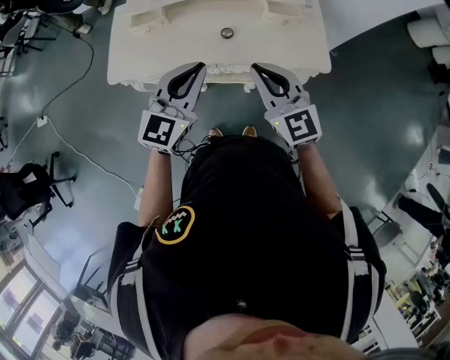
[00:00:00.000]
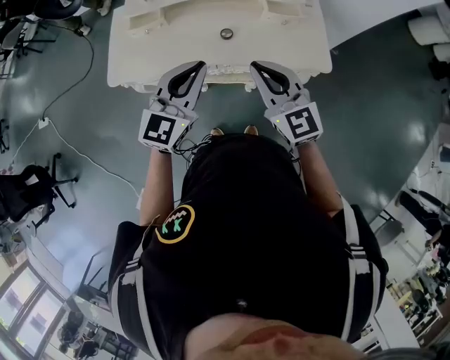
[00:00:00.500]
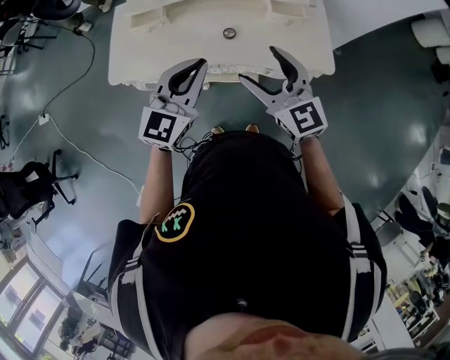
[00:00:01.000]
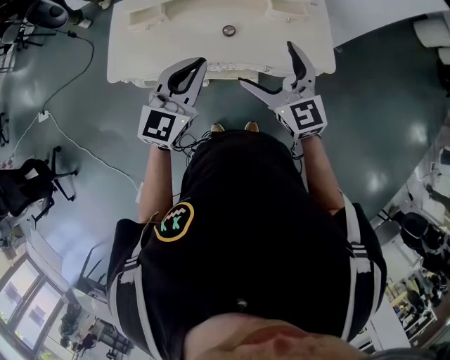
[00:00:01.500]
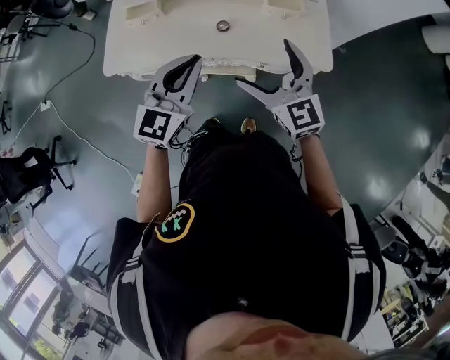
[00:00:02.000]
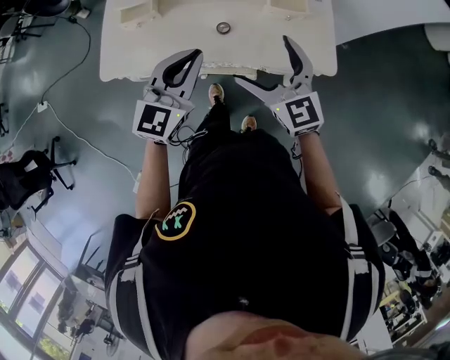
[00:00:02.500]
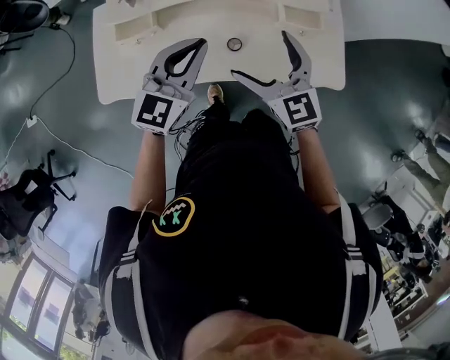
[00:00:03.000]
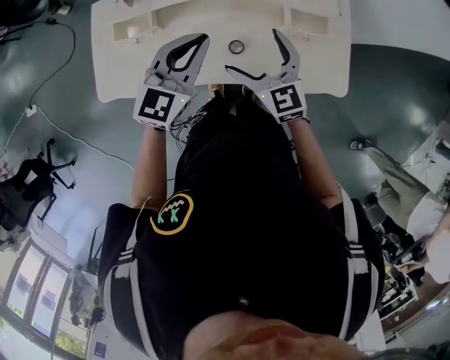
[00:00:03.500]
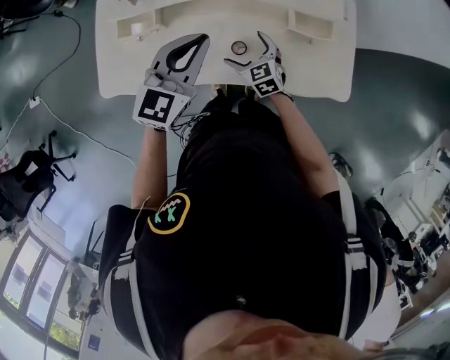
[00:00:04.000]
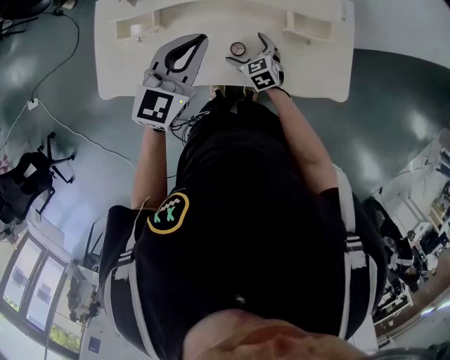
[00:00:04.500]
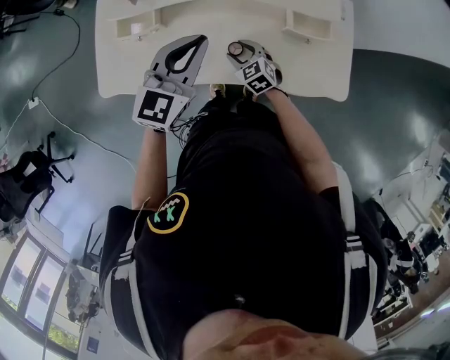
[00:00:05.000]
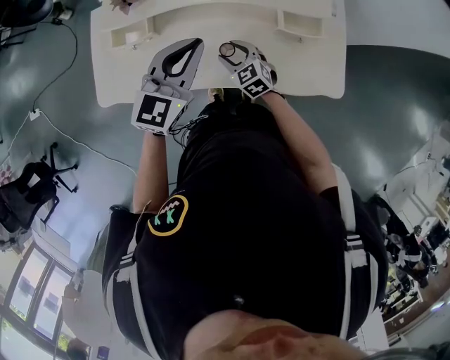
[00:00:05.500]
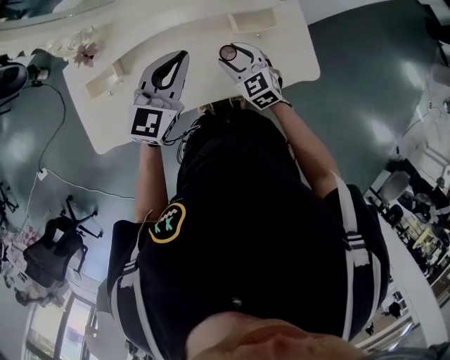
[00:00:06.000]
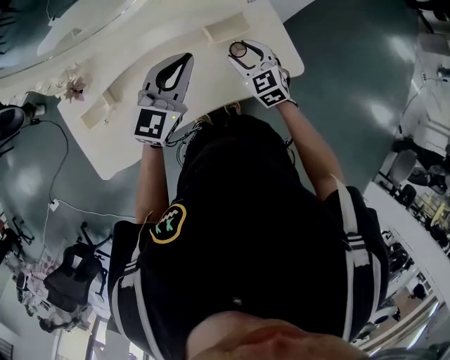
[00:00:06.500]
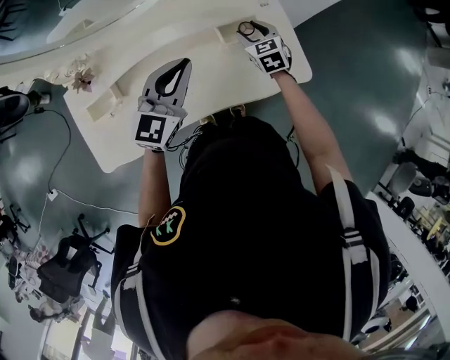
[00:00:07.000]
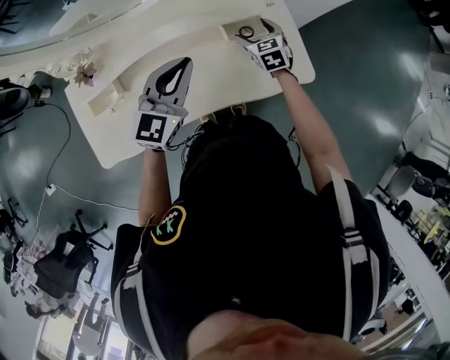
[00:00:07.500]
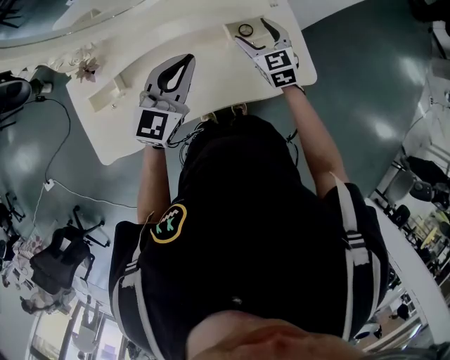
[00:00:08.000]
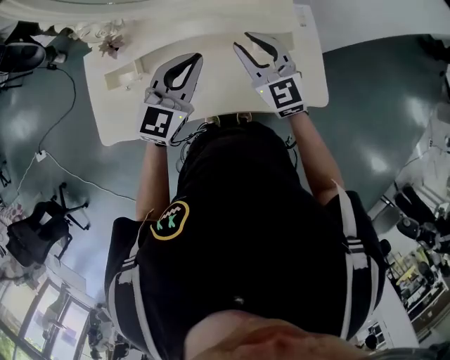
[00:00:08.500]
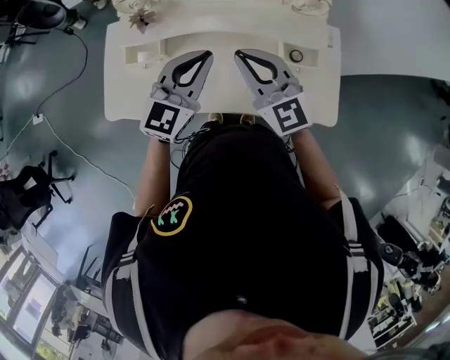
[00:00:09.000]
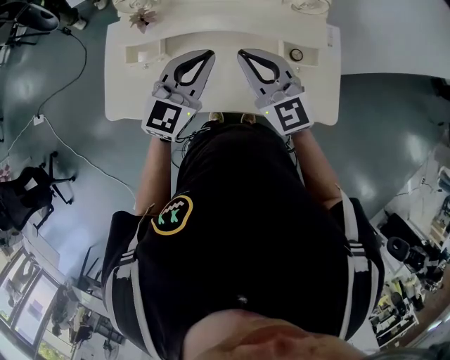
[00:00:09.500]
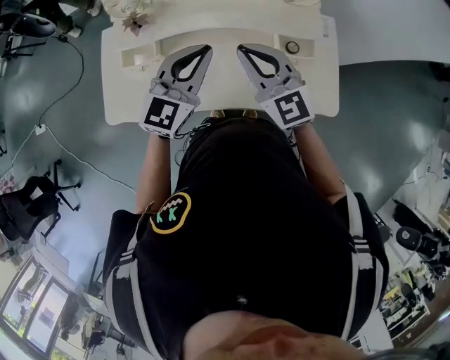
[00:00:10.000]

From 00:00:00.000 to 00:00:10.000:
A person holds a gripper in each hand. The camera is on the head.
From 00:00:00.000 to 00:00:02.000: The right gripper moves to the right, roughly 5 cm, and opens up. The left gripper moves approximately 5 cm.
From 00:00:02.000 to 00:00:04.000: The left gripper goes some 25 cm forward; the right gripper travels downward and forward by some 40 cm, and turns by some 30 degrees.
From 00:00:04.000 to 00:00:06.000: The left gripper travels to the right by approximately 5 cm. The right gripper shifts some 15 cm to the right and upward, and closes.
From 00:00:06.000 to 00:00:08.000: The right gripper moves forward, to the right and upward, some 15 cm.
From 00:00:08.000 to 00:00:10.000: The right gripper shifts approximately 25 cm to the left, upward and backward, rotates some 40 degrees, and closes its fingers; the left gripper goes some 10 cm to the left.

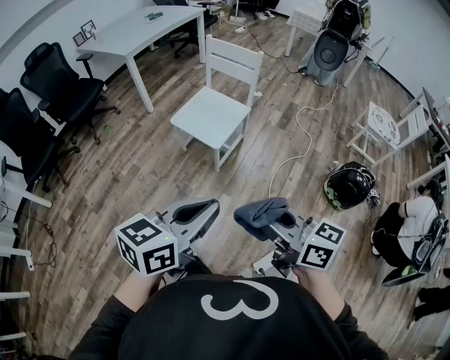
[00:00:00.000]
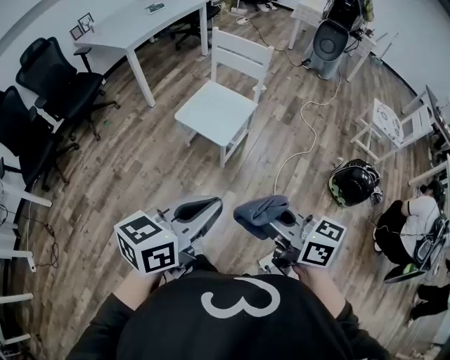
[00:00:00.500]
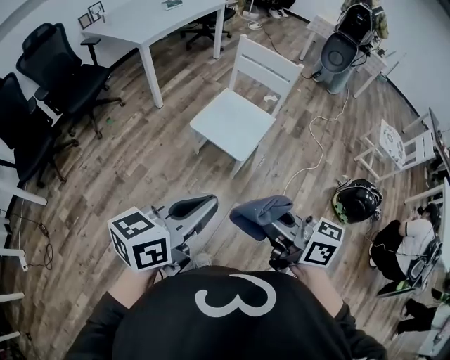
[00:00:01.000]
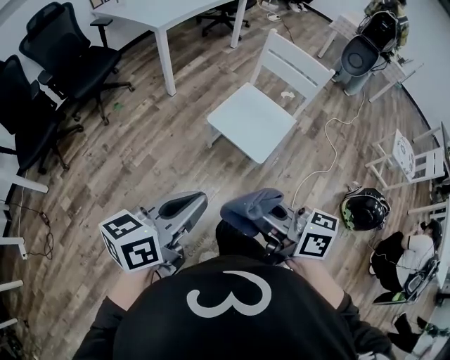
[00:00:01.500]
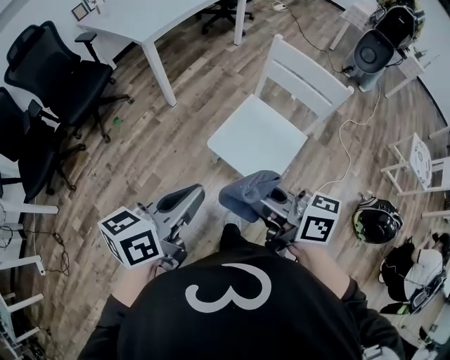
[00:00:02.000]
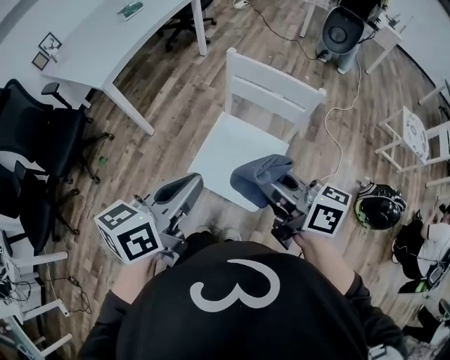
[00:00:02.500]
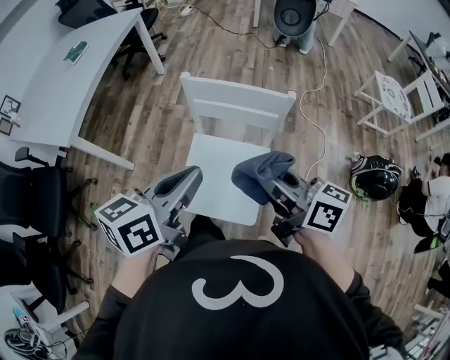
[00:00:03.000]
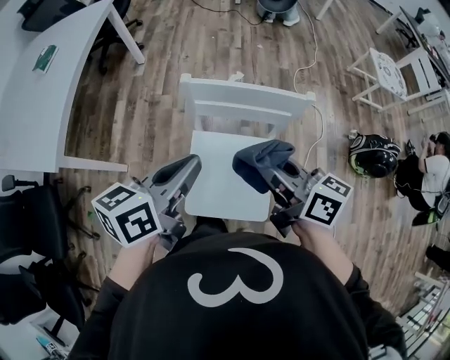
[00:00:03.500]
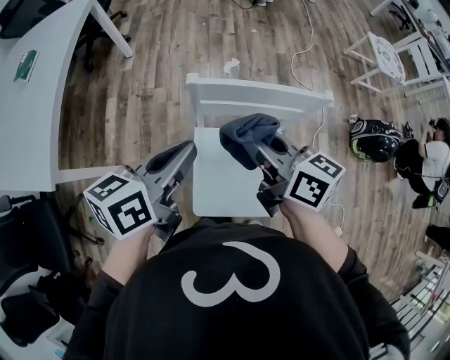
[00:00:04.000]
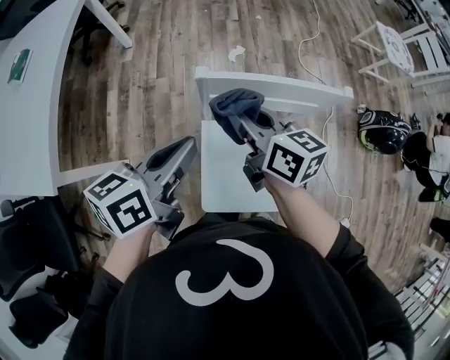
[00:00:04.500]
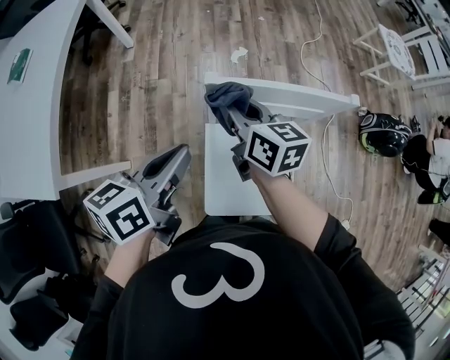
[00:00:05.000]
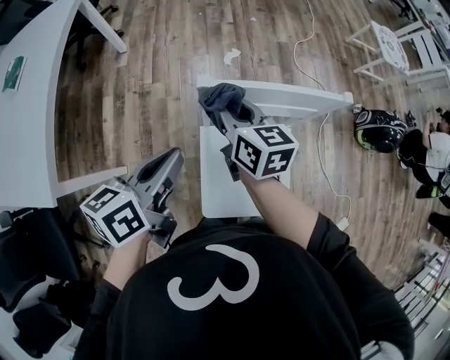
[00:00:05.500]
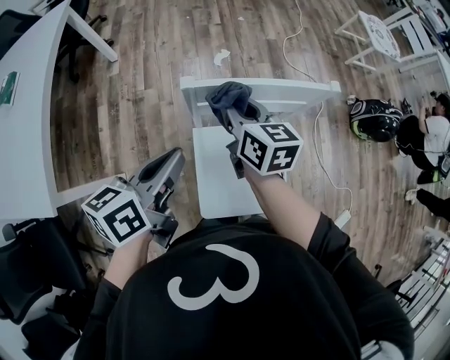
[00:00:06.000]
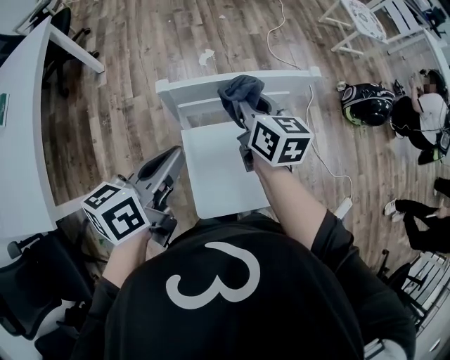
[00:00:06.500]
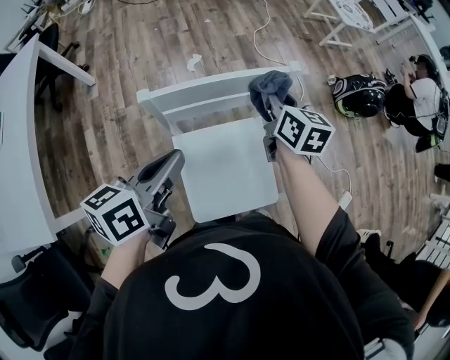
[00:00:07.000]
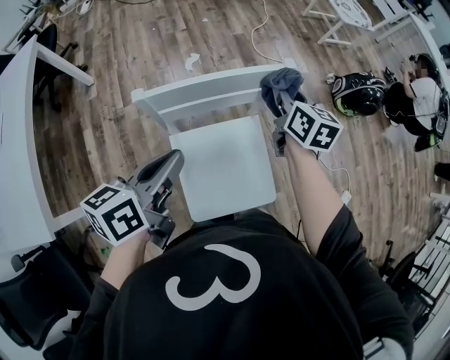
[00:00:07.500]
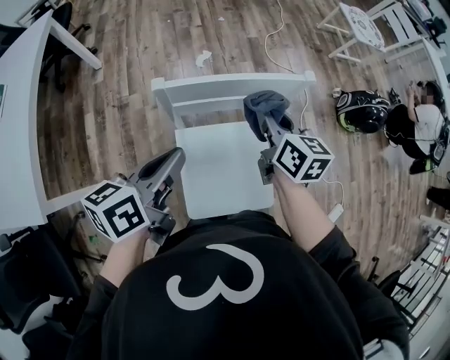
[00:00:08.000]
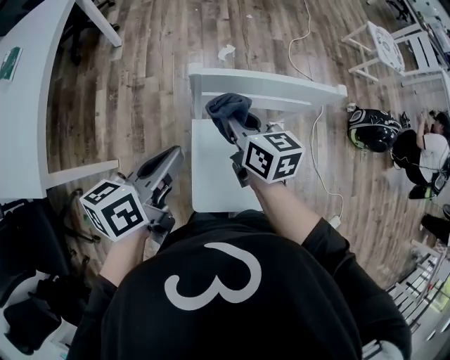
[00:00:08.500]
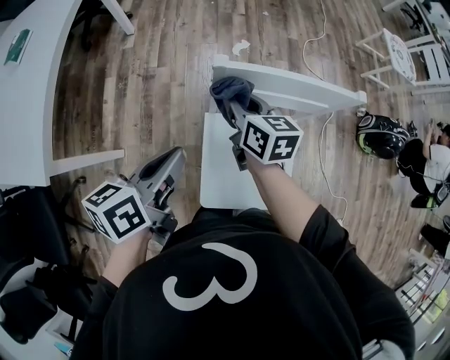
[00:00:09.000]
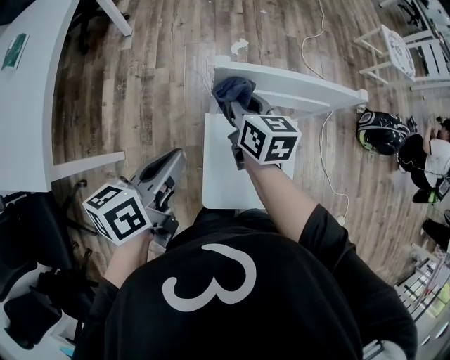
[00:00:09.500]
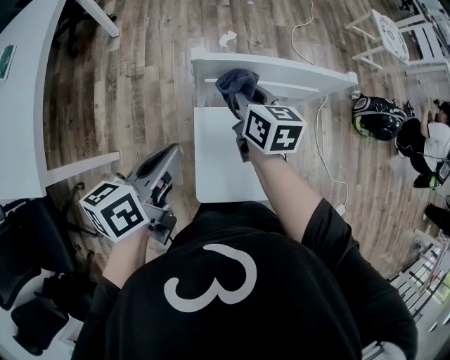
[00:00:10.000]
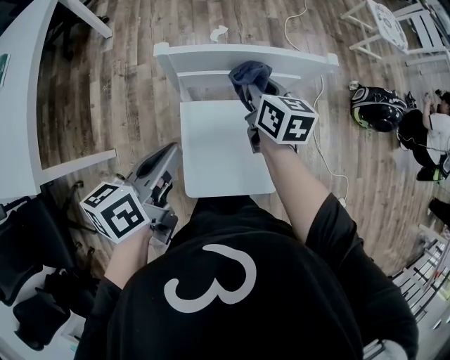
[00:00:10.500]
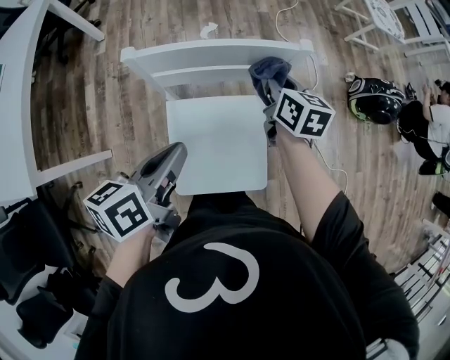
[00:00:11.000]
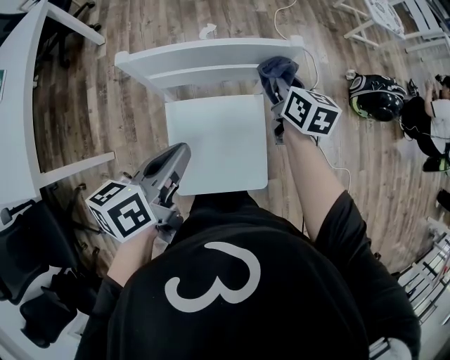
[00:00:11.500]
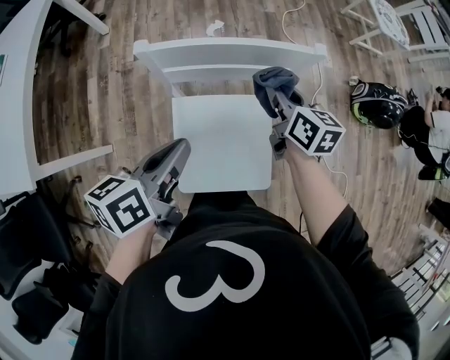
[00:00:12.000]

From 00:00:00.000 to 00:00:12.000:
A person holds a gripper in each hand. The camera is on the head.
From 00:00:00.000 to 00:00:02.000: The two grippers travel together, forward and to the left, roughly 50 cm.
From 00:00:02.000 to 00:00:04.000: Both grippers are carried approximately 50 cm. The left gripper swivels roughly 40 degrees, while the right gripper rotates roughly 50 degrees.
From 00:00:04.000 to 00:00:06.000: The left gripper shifts by roughly 5 cm. Meanwhile the right gripper is displaced forward and downward by about 15 cm, and swivels approximately 20 degrees.
From 00:00:06.000 to 00:00:08.000: The left gripper goes some 5 cm to the right. The right gripper goes about 15 cm to the right.
From 00:00:08.000 to 00:00:10.000: The left gripper shifts about 10 cm to the left. The right gripper travels to the left by about 15 cm.
From 00:00:10.000 to 00:00:12.000: The left gripper is displaced to the right by roughly 10 cm. The right gripper moves to the right, roughly 20 cm.

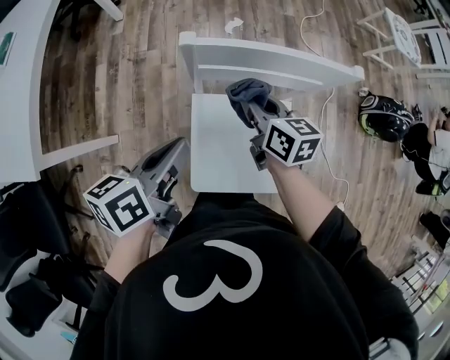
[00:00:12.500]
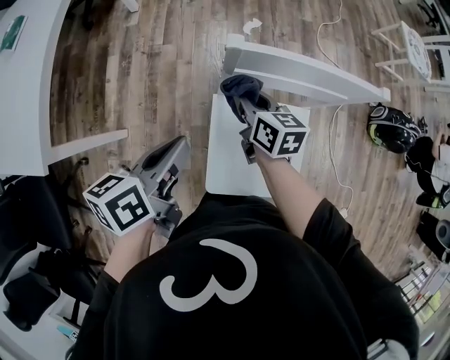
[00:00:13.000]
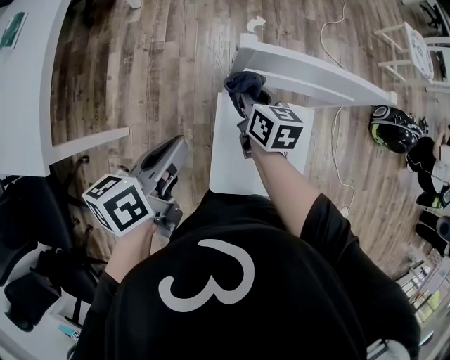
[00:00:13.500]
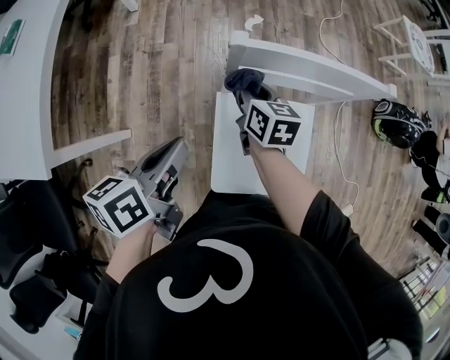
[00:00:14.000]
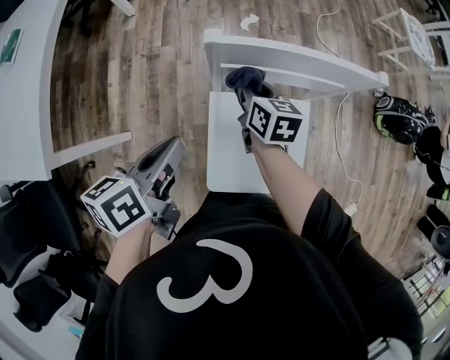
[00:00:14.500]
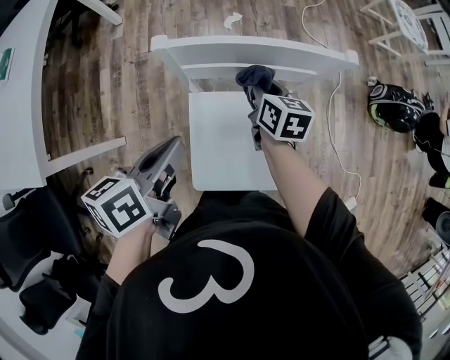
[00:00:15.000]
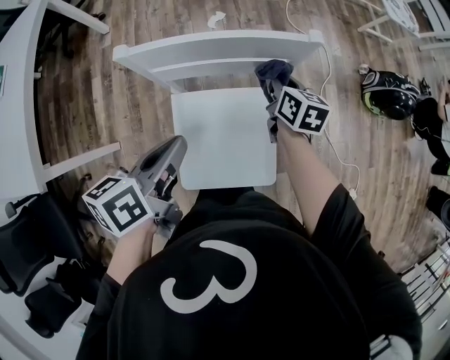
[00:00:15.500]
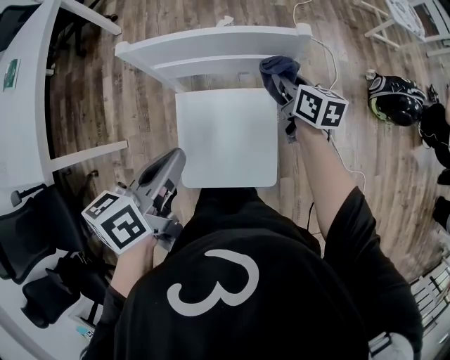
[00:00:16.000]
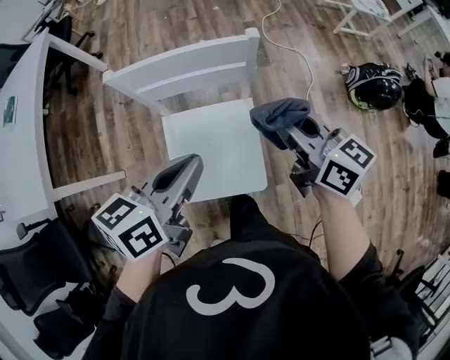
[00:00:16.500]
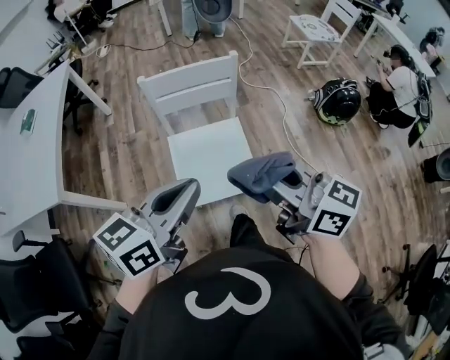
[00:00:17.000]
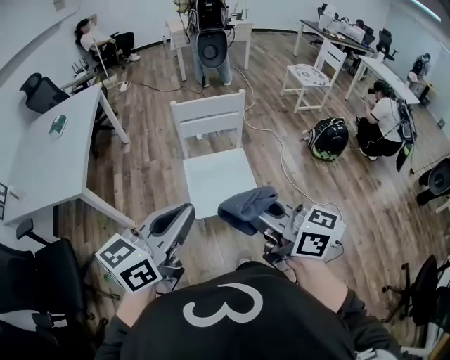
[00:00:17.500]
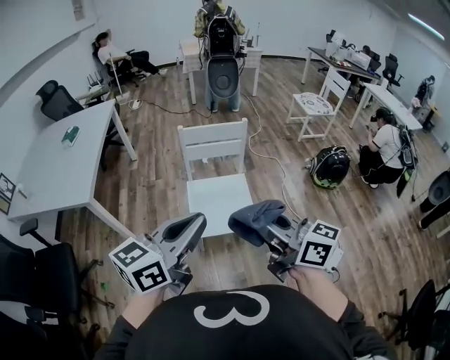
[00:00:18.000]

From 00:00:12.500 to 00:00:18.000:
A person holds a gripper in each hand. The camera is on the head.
From 00:00:12.500 to 00:00:14.500: The left gripper travels to the left by some 5 cm. Meanwhile the right gripper is displaced to the left and downward by roughly 10 cm.
From 00:00:14.500 to 00:00:16.000: The grippers both shift to the right by about 20 cm.
From 00:00:16.000 to 00:00:18.000: The two grippers go roughly 60 cm backward and upward. The right gripper tips its fingers upward by some 30 degrees; the left gripper rotates some 40 degrees.
